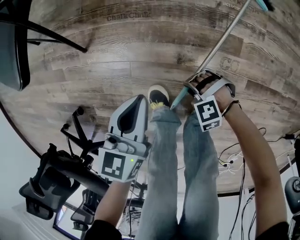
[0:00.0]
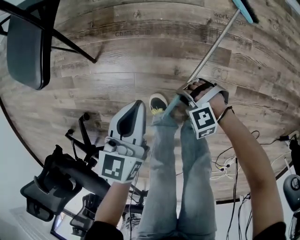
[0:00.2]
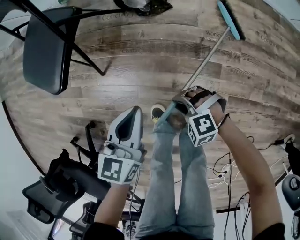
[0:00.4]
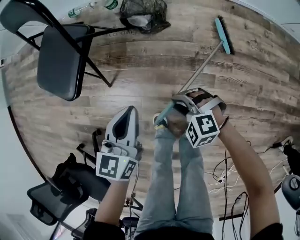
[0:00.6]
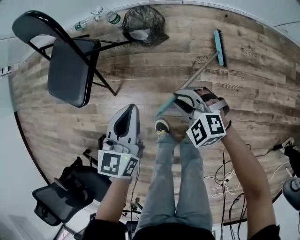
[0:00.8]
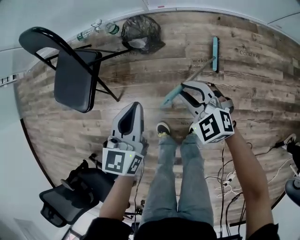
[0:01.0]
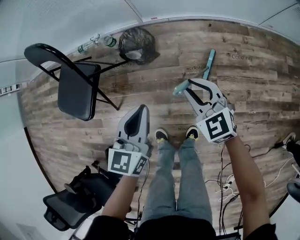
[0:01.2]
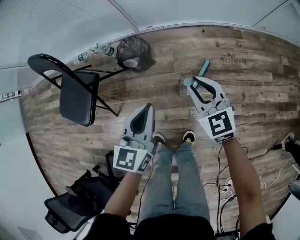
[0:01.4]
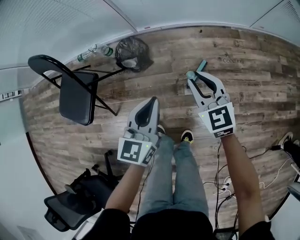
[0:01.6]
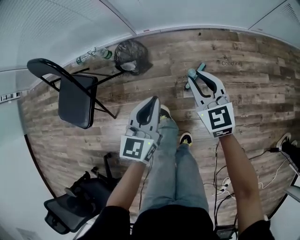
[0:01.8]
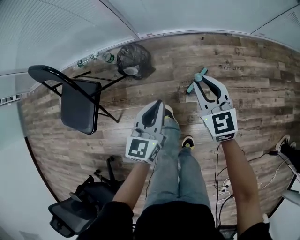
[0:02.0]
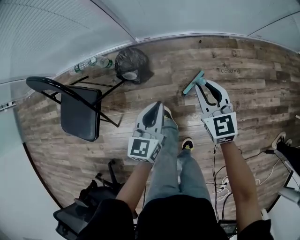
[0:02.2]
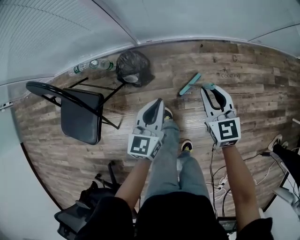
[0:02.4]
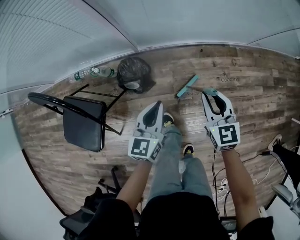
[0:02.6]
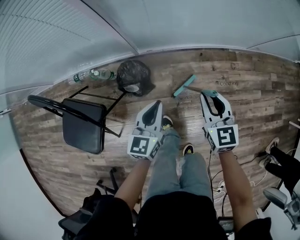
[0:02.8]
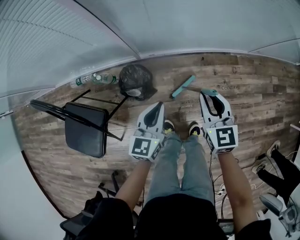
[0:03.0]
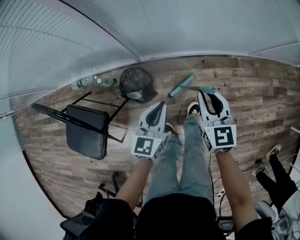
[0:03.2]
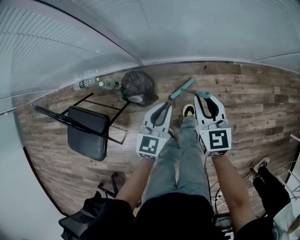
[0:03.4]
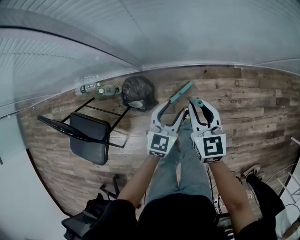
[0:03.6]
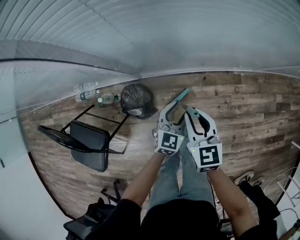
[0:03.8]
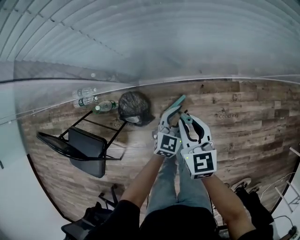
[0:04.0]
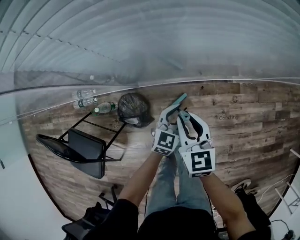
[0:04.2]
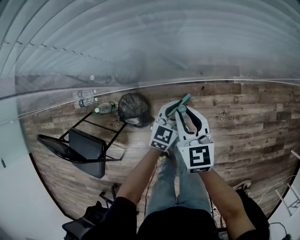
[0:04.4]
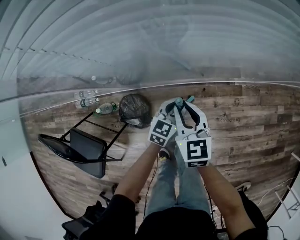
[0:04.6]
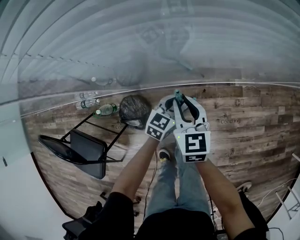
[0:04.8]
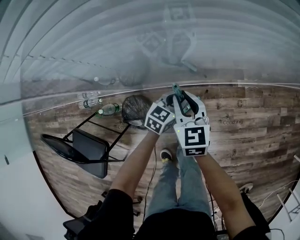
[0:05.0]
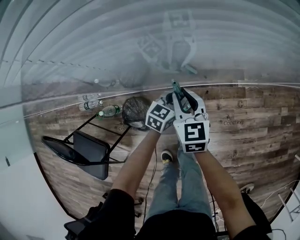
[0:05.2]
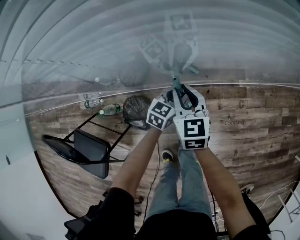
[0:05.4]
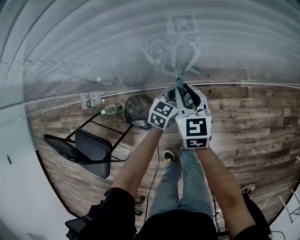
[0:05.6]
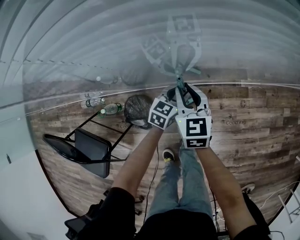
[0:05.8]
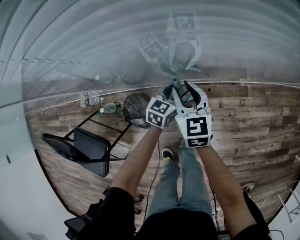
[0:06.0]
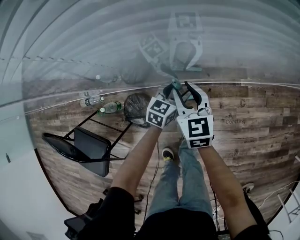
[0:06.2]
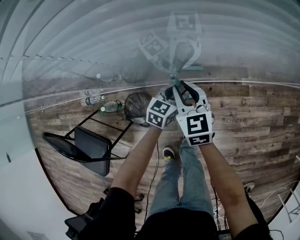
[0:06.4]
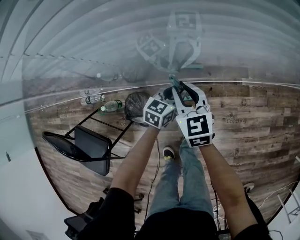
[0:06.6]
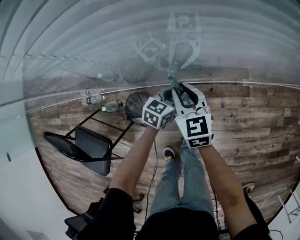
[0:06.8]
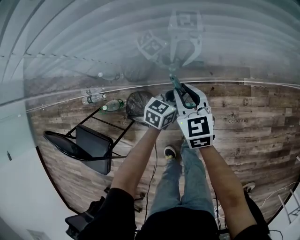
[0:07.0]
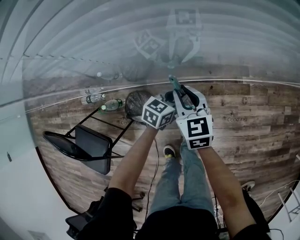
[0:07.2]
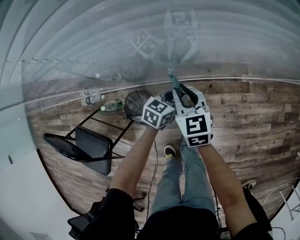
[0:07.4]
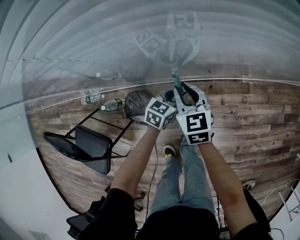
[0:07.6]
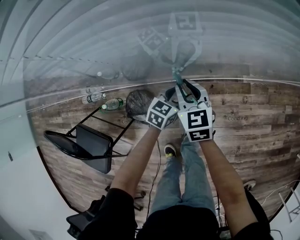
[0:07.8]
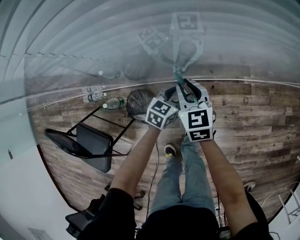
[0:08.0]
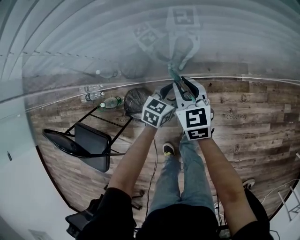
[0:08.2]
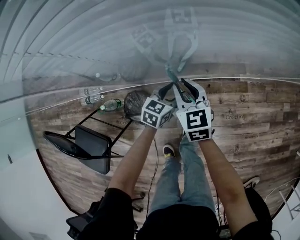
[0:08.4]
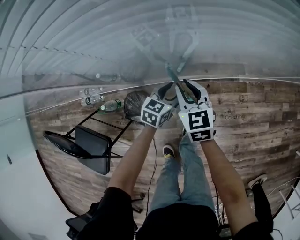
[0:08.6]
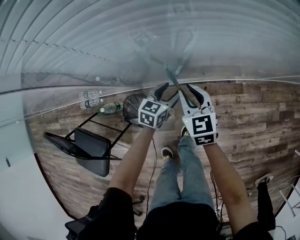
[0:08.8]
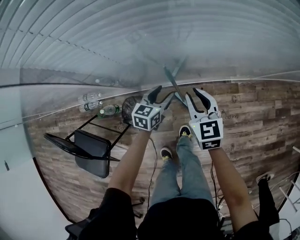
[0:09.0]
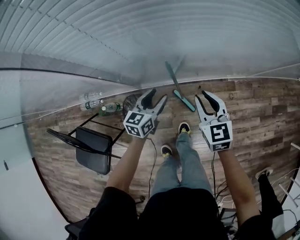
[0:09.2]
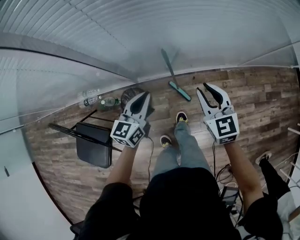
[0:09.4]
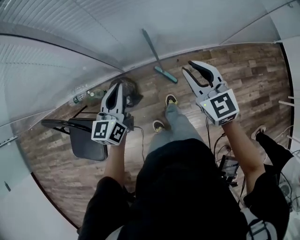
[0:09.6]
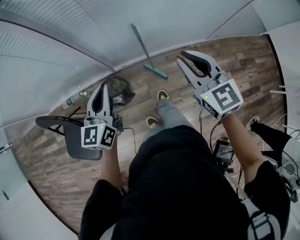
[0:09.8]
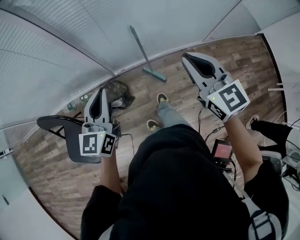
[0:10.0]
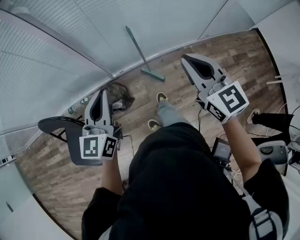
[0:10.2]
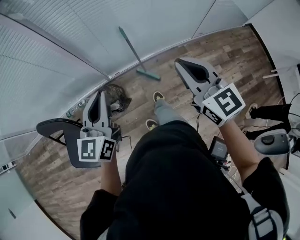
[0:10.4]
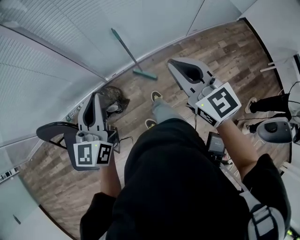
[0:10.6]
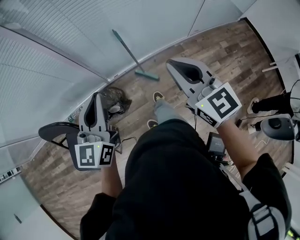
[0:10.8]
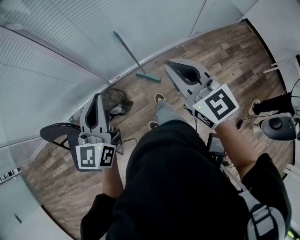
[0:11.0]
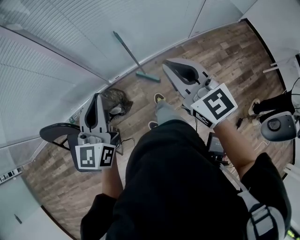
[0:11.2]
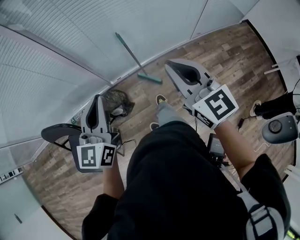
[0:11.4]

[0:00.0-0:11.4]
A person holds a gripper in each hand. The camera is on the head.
0:00.0 to 0:01.4: The grippers both shift upward by roughly 50 cm. The left gripper turns by approximately 20 degrees, while the right gripper angles its fingers upward, by approximately 40 degrees.
0:01.4 to 0:02.8: Both grippers move forward, approximately 20 cm.
0:02.8 to 0:04.2: The left gripper moves forward and to the right, roughly 30 cm, rotates about 20 degrees, and opens, then closes once more. Meanwhile the right gripper travels forward by roughly 20 cm.
0:04.2 to 0:05.6: Both grippers move forward, about 10 cm.
0:05.6 to 0:07.2: The left gripper opens and closes again.
0:07.2 to 0:08.6: The left gripper opens its fingers.
0:08.6 to 0:10.0: Both grippers travel together upward and backward, roughly 50 cm. The left gripper rotates about 40 degrees, and closes its fingers.
0:10.0 to 0:11.4: The left gripper is displaced backward and upward by some 10 cm; the right gripper travels backward by approximately 10 cm.

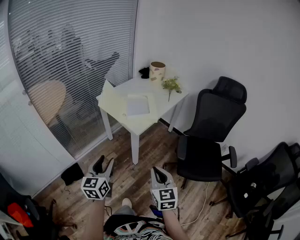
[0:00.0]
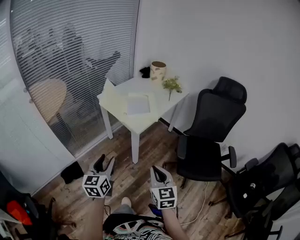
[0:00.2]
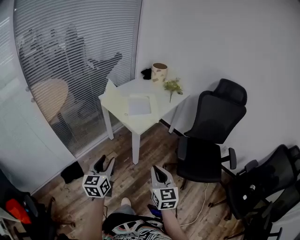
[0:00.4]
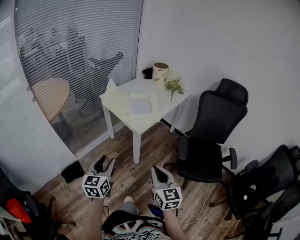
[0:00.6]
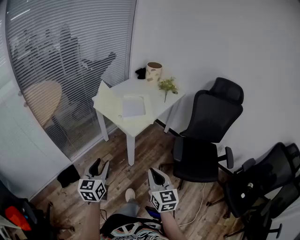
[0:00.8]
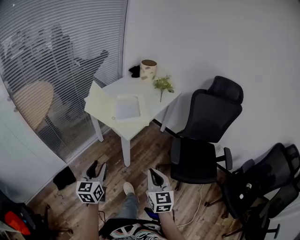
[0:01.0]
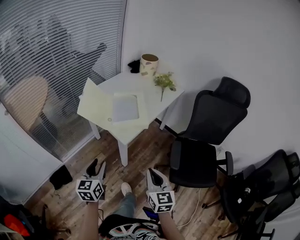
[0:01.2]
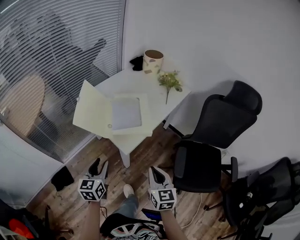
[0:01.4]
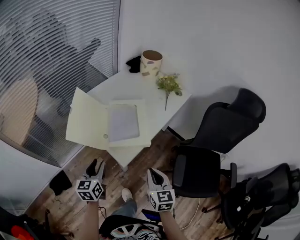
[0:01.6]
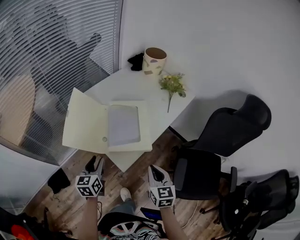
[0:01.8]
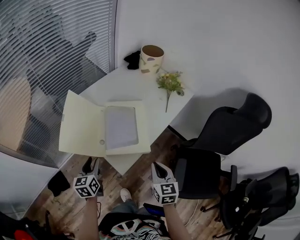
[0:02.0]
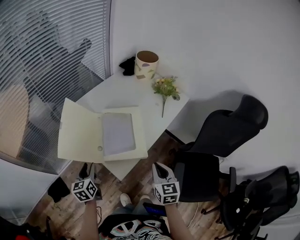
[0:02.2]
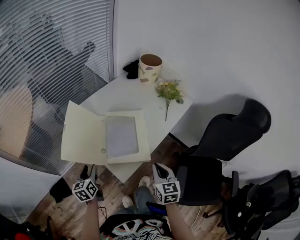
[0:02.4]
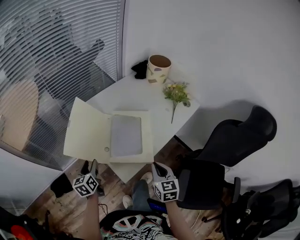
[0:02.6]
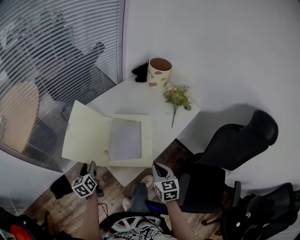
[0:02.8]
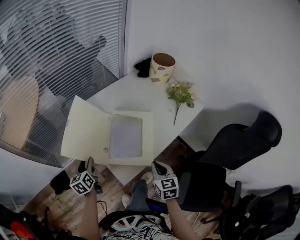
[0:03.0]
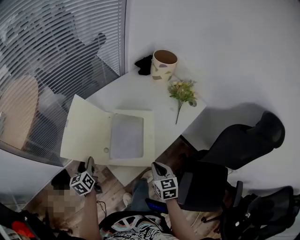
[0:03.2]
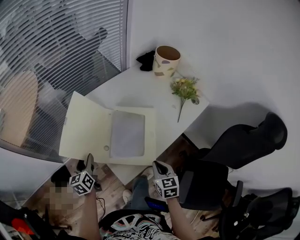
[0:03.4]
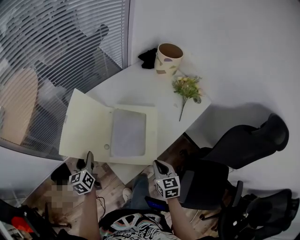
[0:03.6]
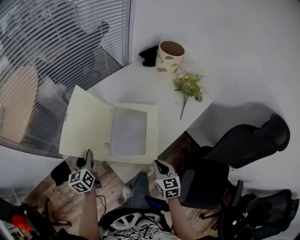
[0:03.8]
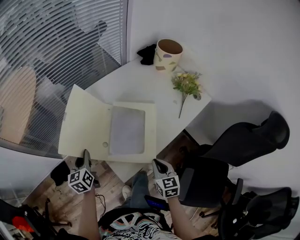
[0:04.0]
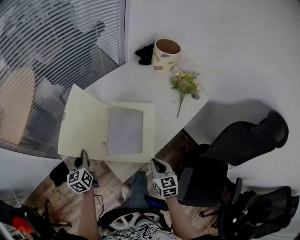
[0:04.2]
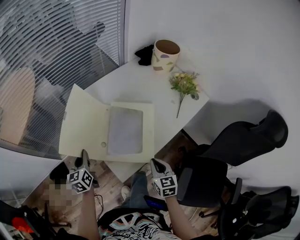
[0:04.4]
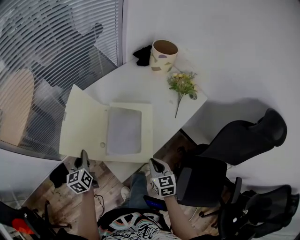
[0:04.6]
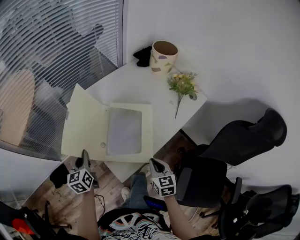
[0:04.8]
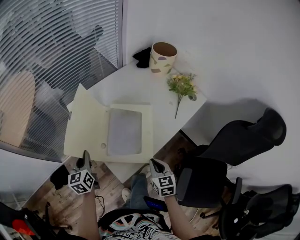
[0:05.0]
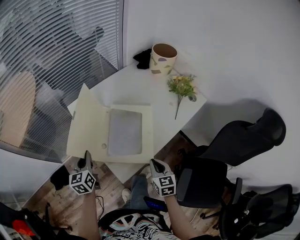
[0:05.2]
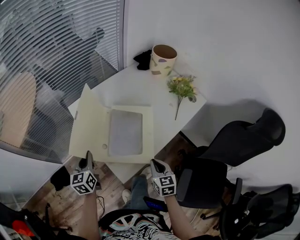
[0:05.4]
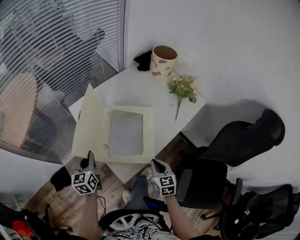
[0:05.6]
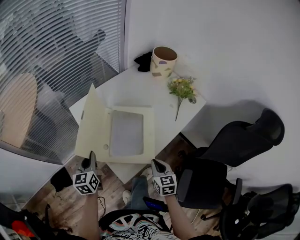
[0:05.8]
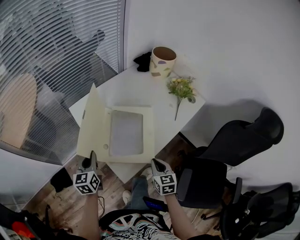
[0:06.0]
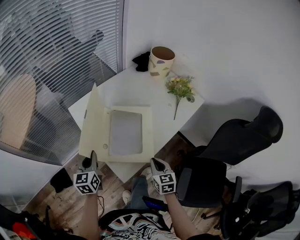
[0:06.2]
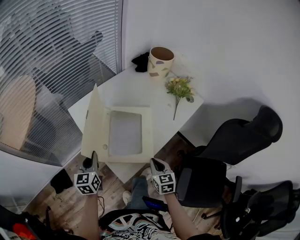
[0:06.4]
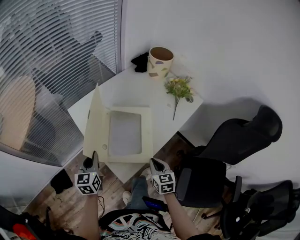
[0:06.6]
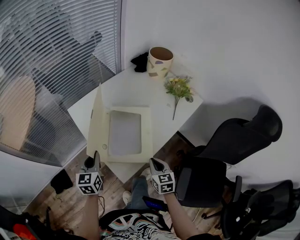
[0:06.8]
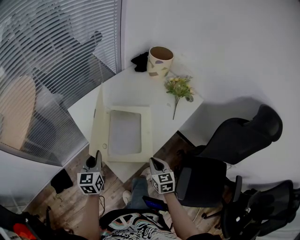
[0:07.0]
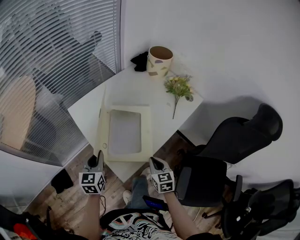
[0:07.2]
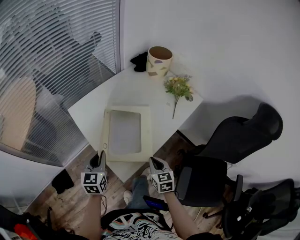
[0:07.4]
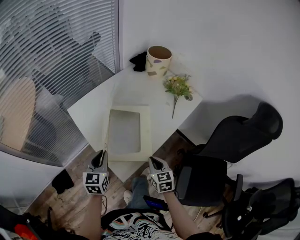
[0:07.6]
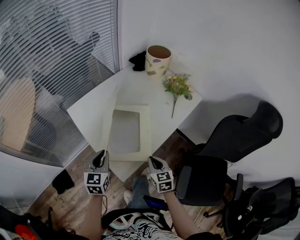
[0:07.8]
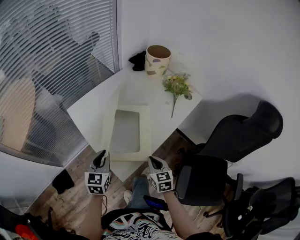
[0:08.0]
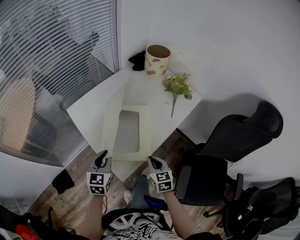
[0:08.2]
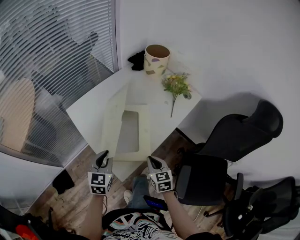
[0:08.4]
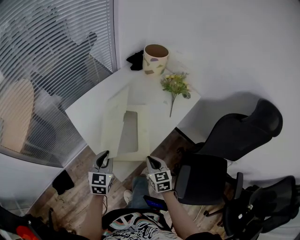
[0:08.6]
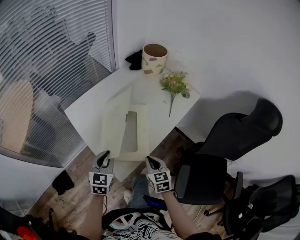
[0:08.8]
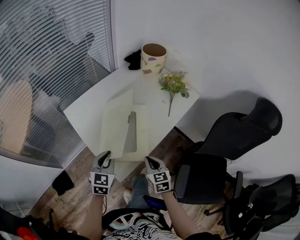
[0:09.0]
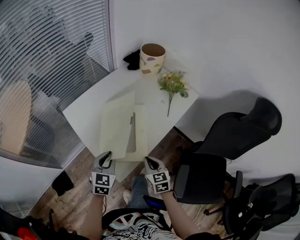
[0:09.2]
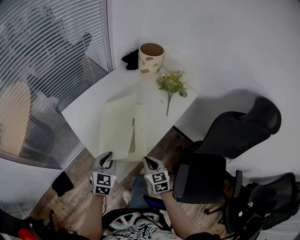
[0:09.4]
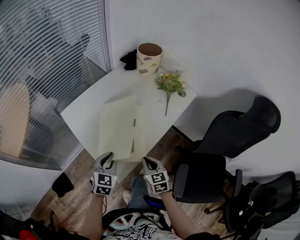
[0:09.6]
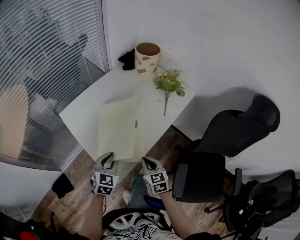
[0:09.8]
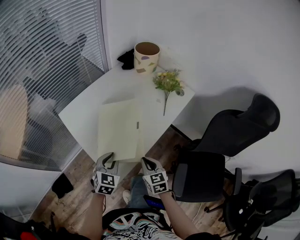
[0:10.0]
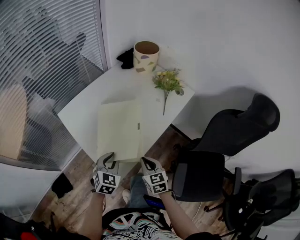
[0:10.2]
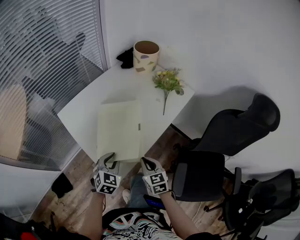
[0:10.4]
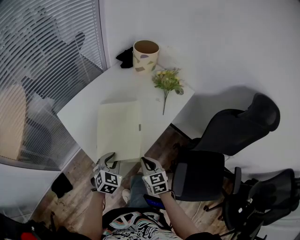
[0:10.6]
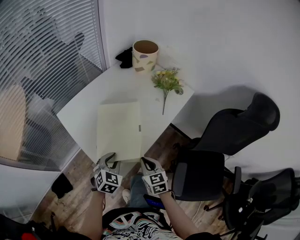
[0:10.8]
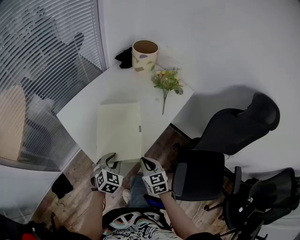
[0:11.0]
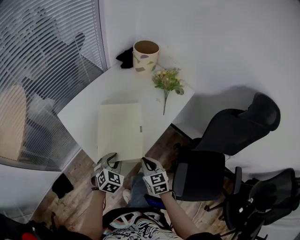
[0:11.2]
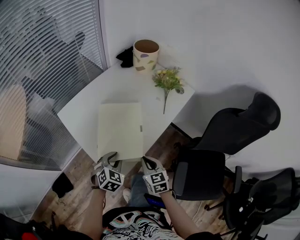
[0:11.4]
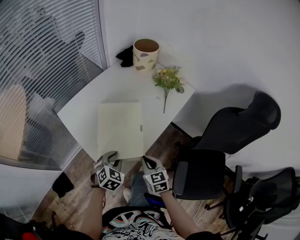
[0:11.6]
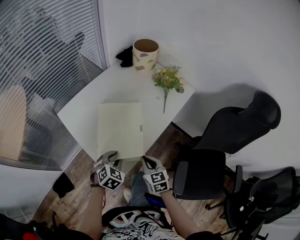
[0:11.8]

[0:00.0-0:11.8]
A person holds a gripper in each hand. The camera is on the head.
0:00.0 to 0:01.4: The left gripper heads forward and downward, covering about 25 cm; the right gripper heads forward, covering approximately 25 cm.
0:01.4 to 0:03.0: The left gripper travels forward and downward by some 20 cm, and changes its angle by approximately 30 degrees; the right gripper goes roughly 25 cm forward.
0:03.0 to 0:04.4: The left gripper closes its fingers.
0:04.4 to 0:06.0: There are only small adjustments of the grippers.
0:06.0 to 0:07.4: The left gripper heads to the right, covering roughly 5 cm.
0:07.4 to 0:08.8: The left gripper is displaced to the right by about 5 cm.
0:08.8 to 0:10.4: The left gripper moves to the right, roughly 5 cm, and rotates some 20 degrees.
0:10.4 to 0:11.8: There are only small adjustments of the grippers.

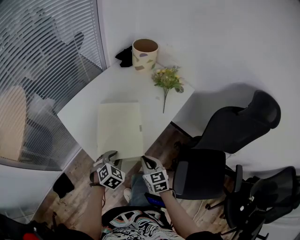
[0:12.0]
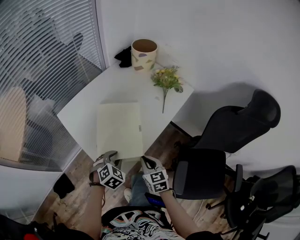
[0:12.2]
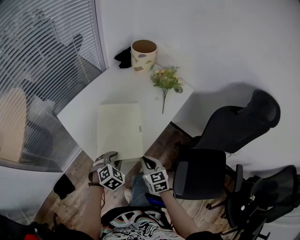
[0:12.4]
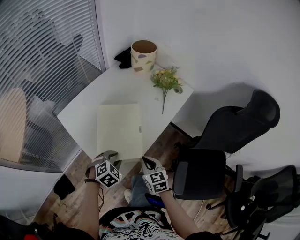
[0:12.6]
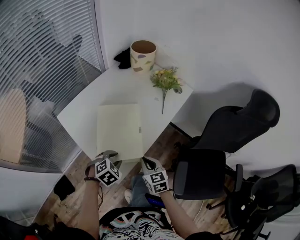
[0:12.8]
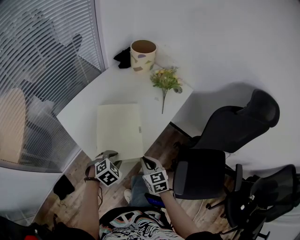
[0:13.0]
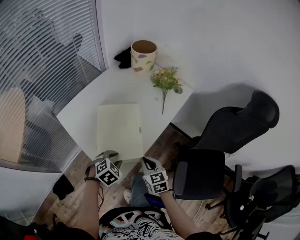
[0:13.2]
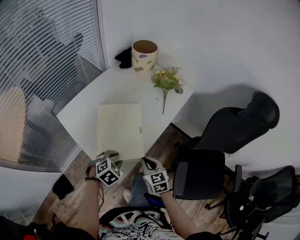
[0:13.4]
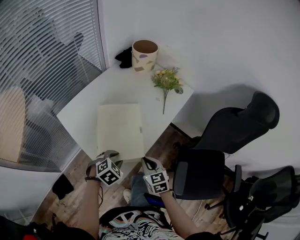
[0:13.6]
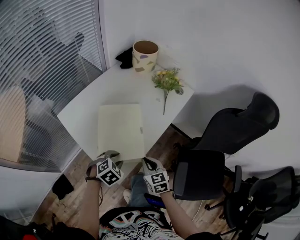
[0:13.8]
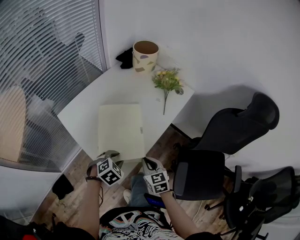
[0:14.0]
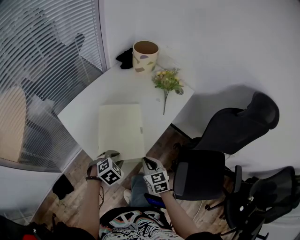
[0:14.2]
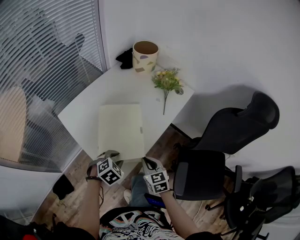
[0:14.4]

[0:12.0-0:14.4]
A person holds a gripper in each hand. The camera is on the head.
0:12.0 to 0:13.2: The grippers stay close to where they were, moving slightly.
0:13.2 to 0:14.4: Both grippers stay about where they are.
